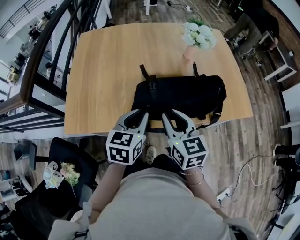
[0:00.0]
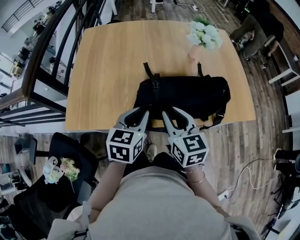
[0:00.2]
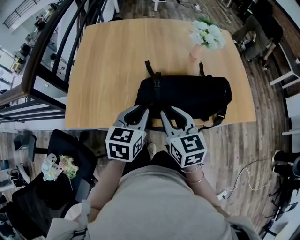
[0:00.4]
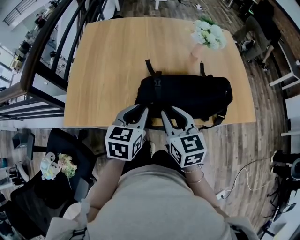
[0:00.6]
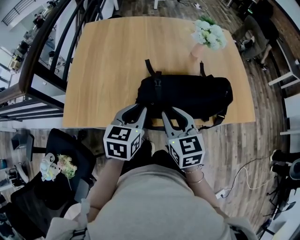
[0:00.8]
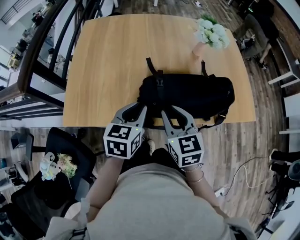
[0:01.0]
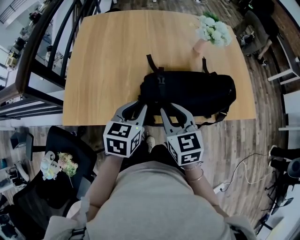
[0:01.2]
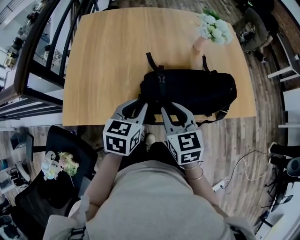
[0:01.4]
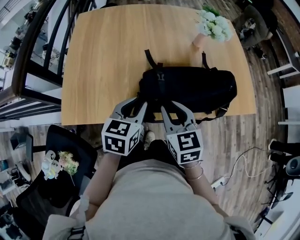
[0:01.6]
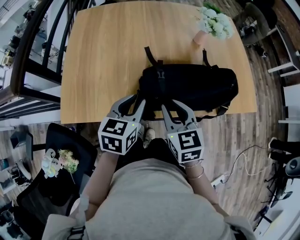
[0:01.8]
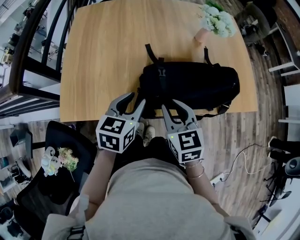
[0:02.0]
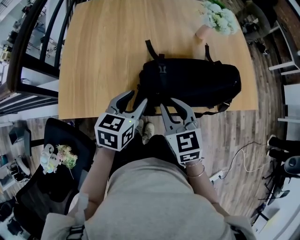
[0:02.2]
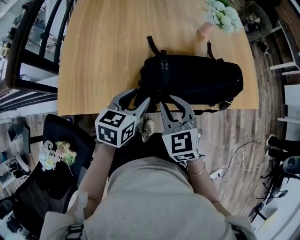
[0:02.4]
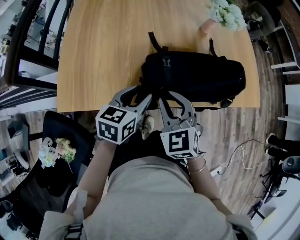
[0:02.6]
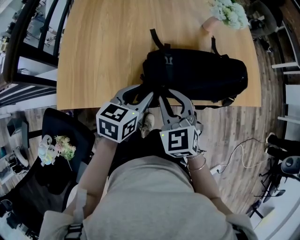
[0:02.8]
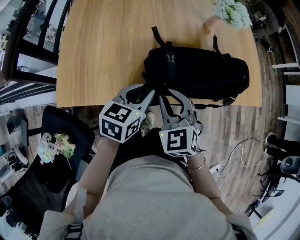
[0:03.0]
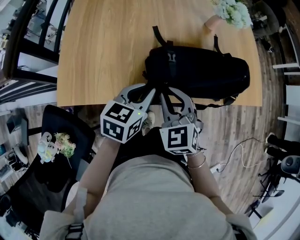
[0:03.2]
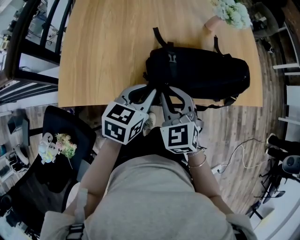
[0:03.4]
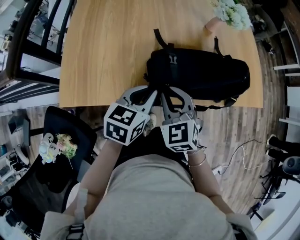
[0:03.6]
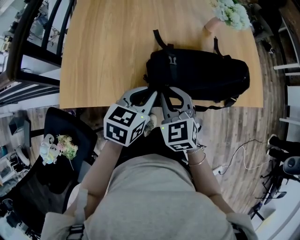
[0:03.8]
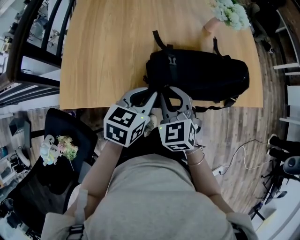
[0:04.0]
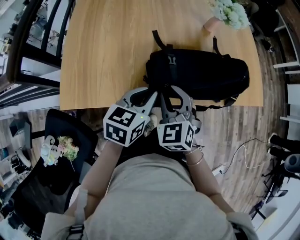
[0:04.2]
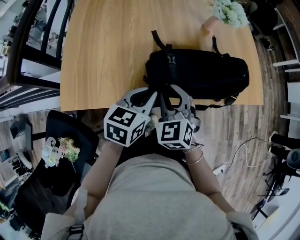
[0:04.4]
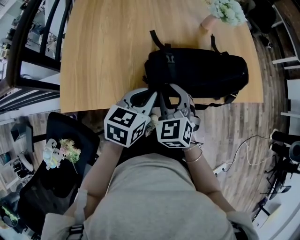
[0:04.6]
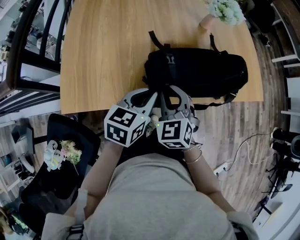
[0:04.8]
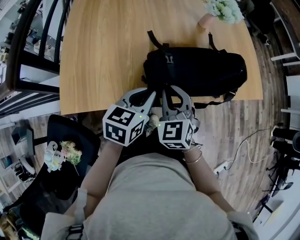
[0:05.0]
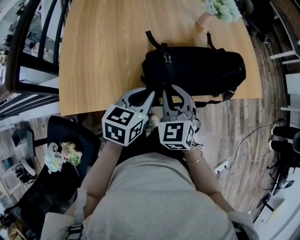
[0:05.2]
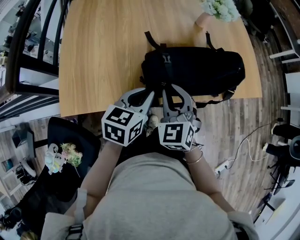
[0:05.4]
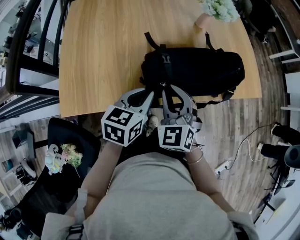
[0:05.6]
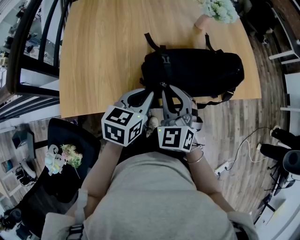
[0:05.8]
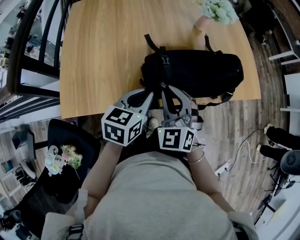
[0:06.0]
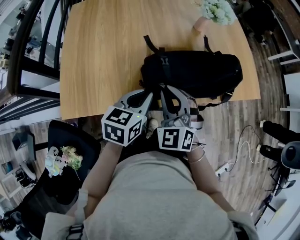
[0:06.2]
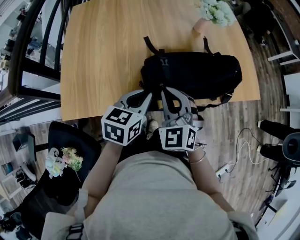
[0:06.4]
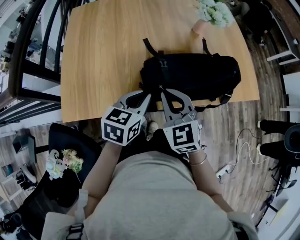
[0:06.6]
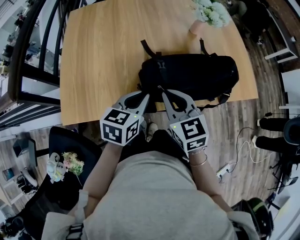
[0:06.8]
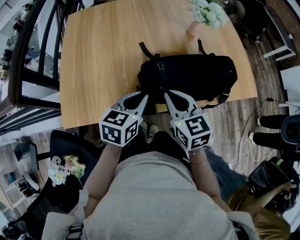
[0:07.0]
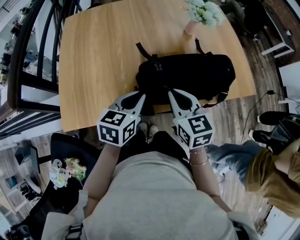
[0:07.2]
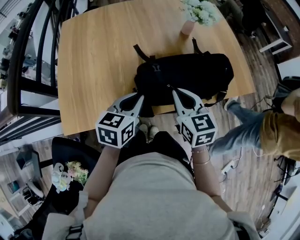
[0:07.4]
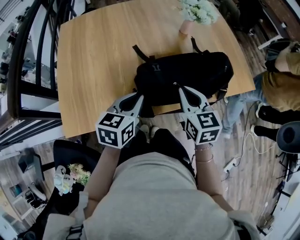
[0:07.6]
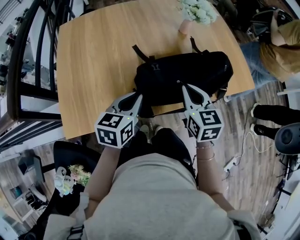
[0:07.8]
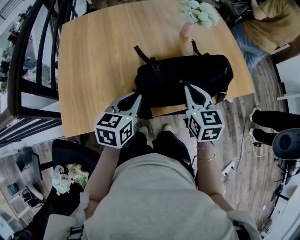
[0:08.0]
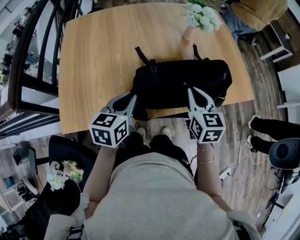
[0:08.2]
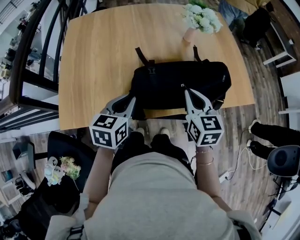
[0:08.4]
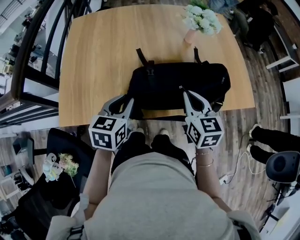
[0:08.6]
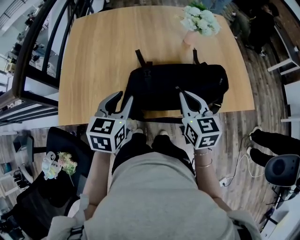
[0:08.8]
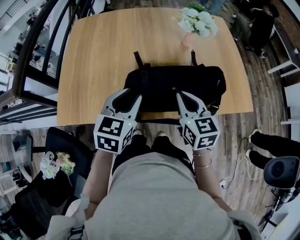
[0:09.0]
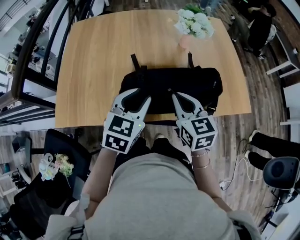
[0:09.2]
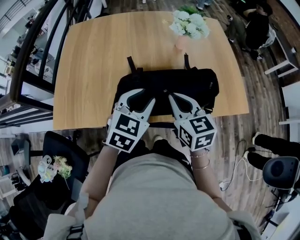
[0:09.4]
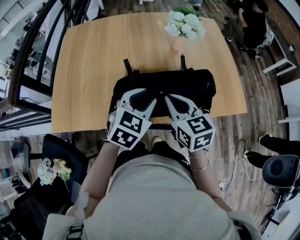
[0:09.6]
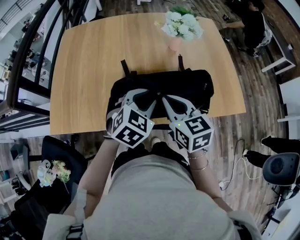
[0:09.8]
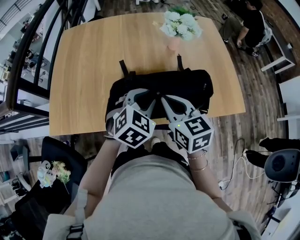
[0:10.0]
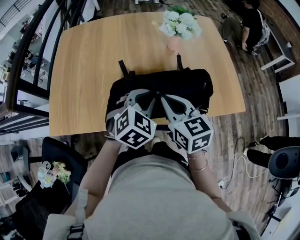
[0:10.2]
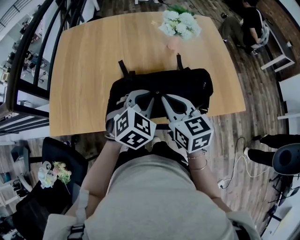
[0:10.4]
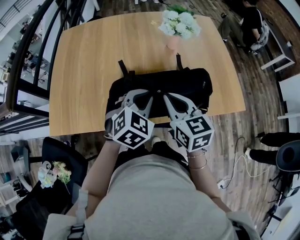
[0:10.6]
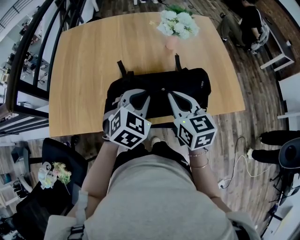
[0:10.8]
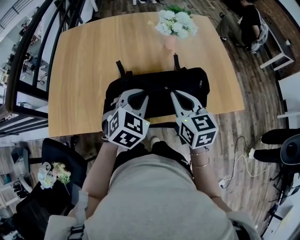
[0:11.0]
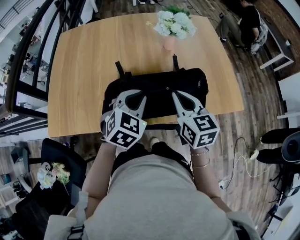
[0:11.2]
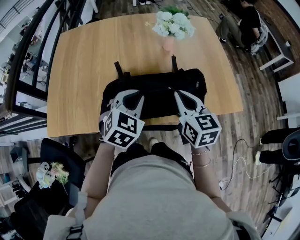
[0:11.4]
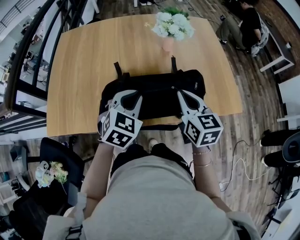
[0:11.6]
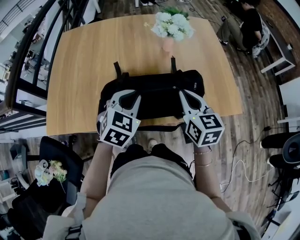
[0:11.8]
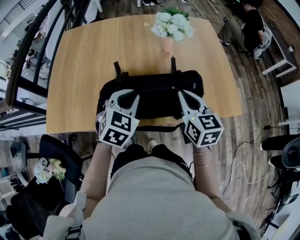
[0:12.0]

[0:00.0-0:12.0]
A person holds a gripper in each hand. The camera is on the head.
0:00.0 to 0:01.6: There are only small adjustments of the grippers.
0:01.6 to 0:03.0: The right gripper turns by roughly 20 degrees. Meanwhile the left gripper opens, then closes once more.
0:03.0 to 0:06.0: The grippers make only small movements.
0:06.0 to 0:07.6: The right gripper shifts some 10 cm to the right, and twists about 40 degrees clockwise, seen from behind.
0:07.6 to 0:09.0: The left gripper is displaced upward by some 5 cm, and opens its fingers.
0:09.0 to 0:10.4: The left gripper heads to the right, covering roughly 10 cm, and swivels some 30 degrees.
0:10.4 to 0:12.0: The right gripper goes approximately 10 cm to the right.

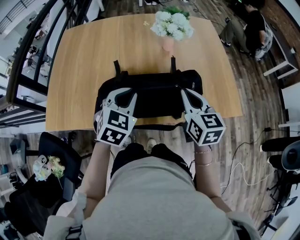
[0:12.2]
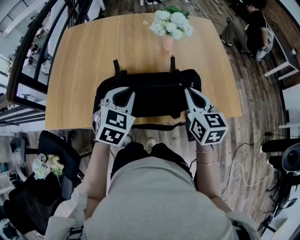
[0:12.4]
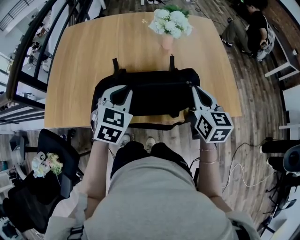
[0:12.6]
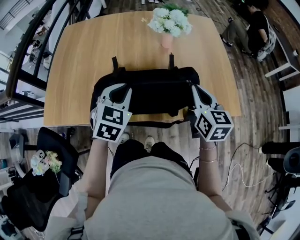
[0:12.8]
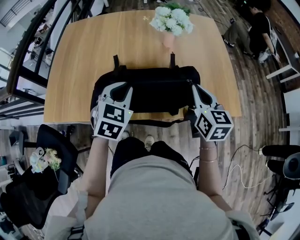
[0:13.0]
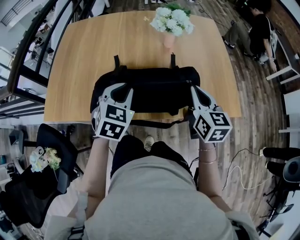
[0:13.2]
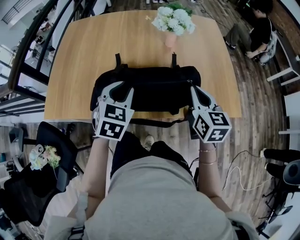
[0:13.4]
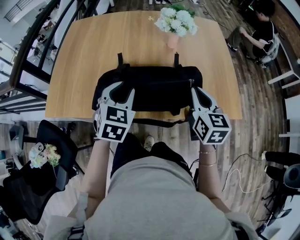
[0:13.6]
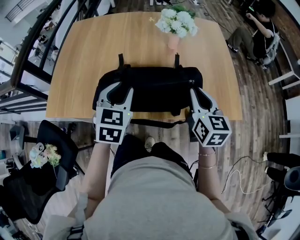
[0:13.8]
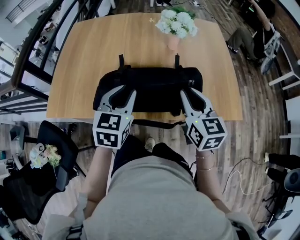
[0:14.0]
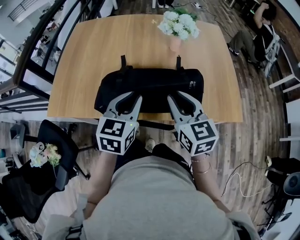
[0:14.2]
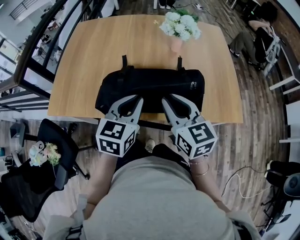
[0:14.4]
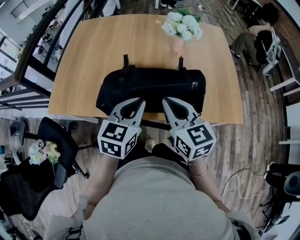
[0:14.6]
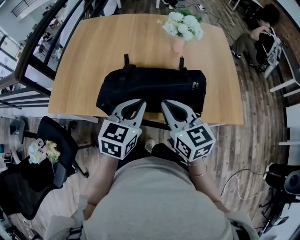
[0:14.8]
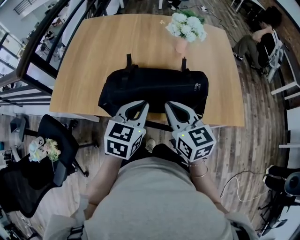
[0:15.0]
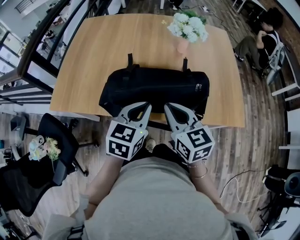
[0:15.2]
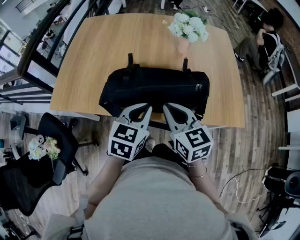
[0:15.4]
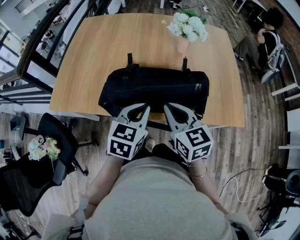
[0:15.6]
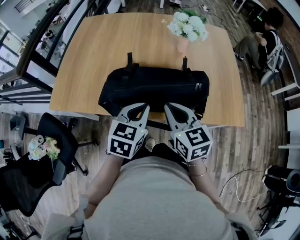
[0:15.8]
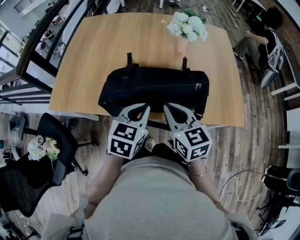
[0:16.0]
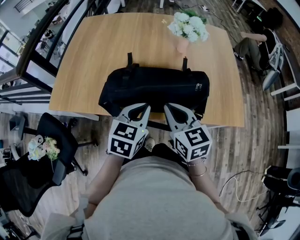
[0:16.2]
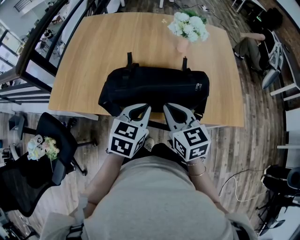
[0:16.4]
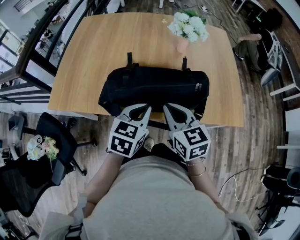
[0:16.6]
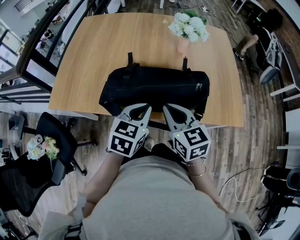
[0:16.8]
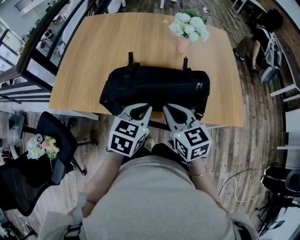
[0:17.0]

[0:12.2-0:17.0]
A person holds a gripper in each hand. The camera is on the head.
0:12.2 to 0:13.8: The grippers move only a little.
0:13.8 to 0:15.4: The right gripper moves to the left, some 15 cm, and changes its angle by about 20 degrees. Meanwhile the left gripper heads backward, covering roughly 5 cm, and closes.
0:15.4 to 0:17.0: The grippers stay close to where they were, moving slightly.

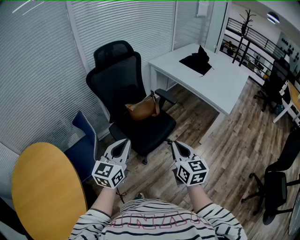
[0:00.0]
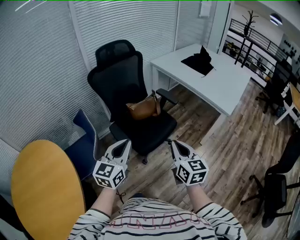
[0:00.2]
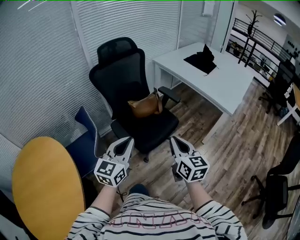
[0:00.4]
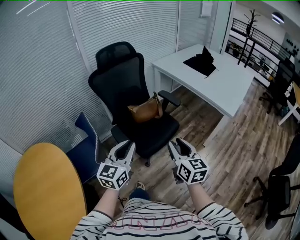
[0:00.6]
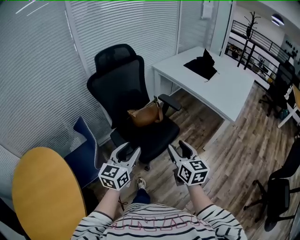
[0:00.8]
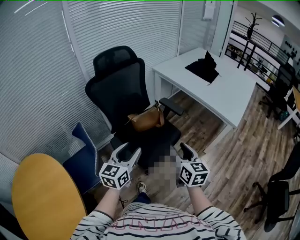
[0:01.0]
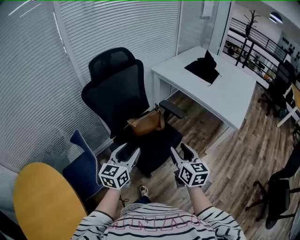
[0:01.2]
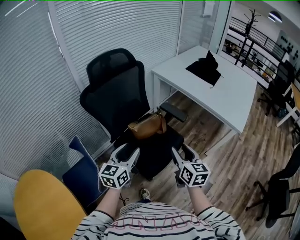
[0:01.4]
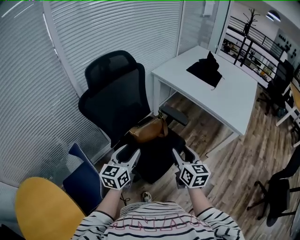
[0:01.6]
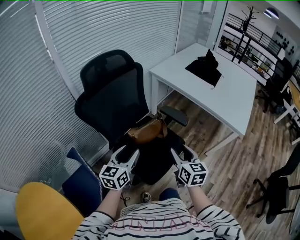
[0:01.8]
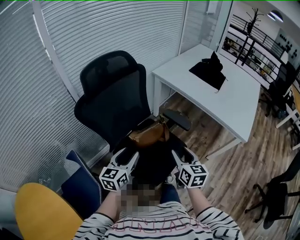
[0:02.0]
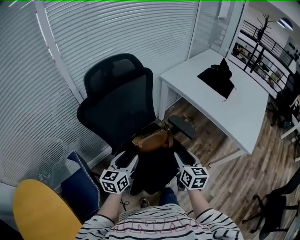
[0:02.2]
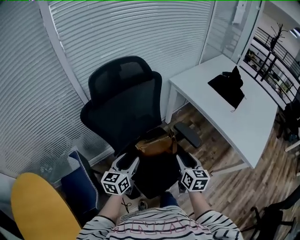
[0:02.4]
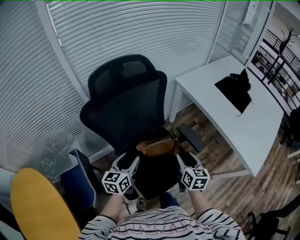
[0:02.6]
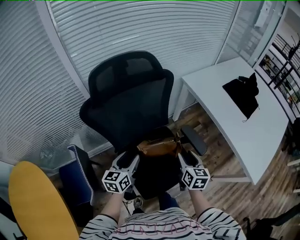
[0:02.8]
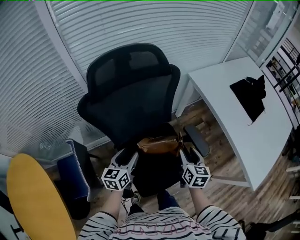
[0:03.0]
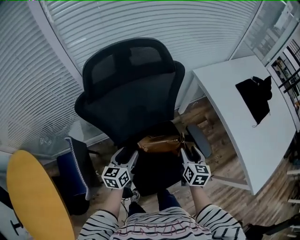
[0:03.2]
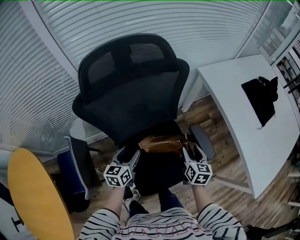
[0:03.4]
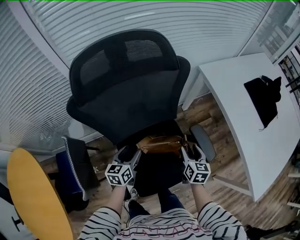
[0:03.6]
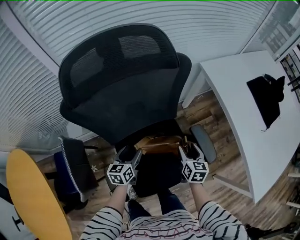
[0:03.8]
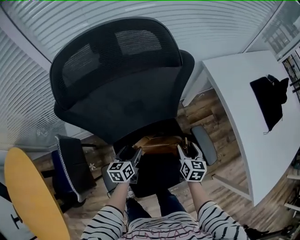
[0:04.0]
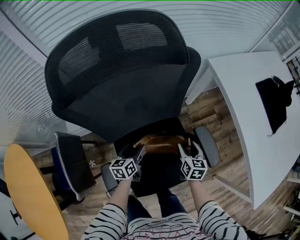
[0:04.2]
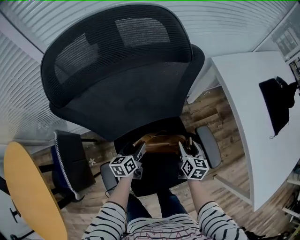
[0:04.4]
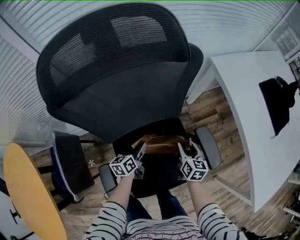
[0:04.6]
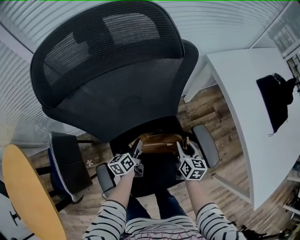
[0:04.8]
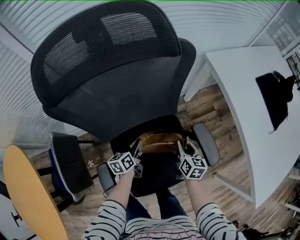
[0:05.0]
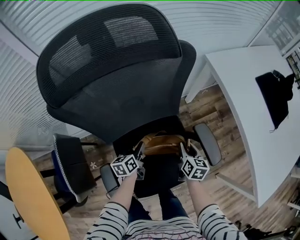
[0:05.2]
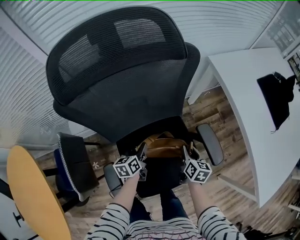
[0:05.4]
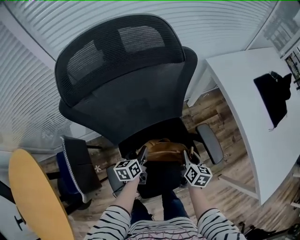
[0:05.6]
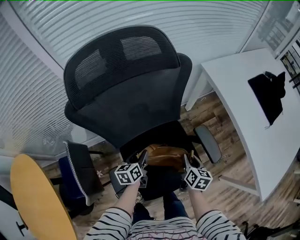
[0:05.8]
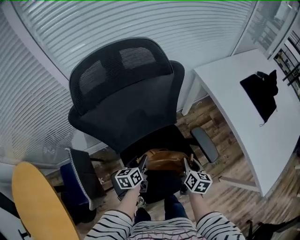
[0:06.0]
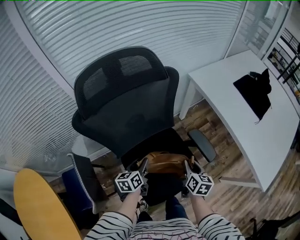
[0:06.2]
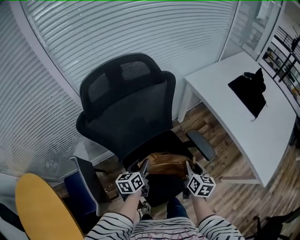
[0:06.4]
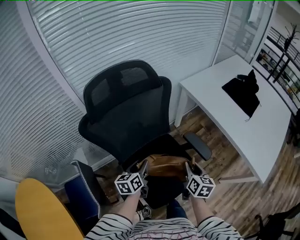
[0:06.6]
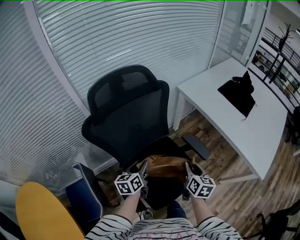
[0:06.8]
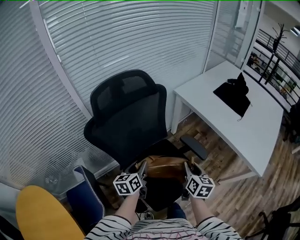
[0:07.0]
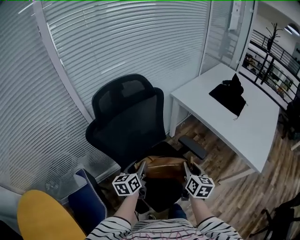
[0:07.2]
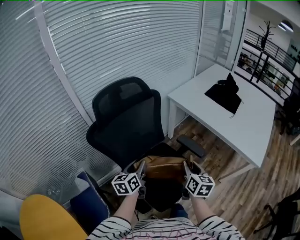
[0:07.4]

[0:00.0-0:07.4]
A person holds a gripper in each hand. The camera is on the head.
0:00.0 to 0:01.4: Both grippers move forward, roughly 20 cm. The right gripper opens up. The left gripper opens.
0:01.4 to 0:03.0: The grippers both shift forward and downward by some 30 cm. The left gripper rotates some 30 degrees.
0:03.0 to 0:04.4: Both grippers travel together downward and forward, some 20 cm. The left gripper turns by about 20 degrees.
0:04.4 to 0:06.0: The left gripper travels upward by some 10 cm, and closes its fingers. Meanwhile the right gripper moves backward and upward, some 10 cm, and closes its fingers.
0:06.0 to 0:07.4: The left gripper is displaced upward by approximately 20 cm, and swivels about 20 degrees, while the right gripper moves upward and backward, about 20 cm.
